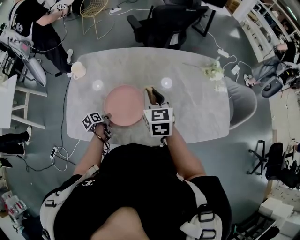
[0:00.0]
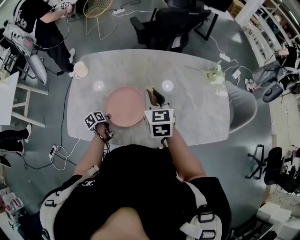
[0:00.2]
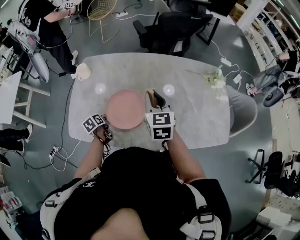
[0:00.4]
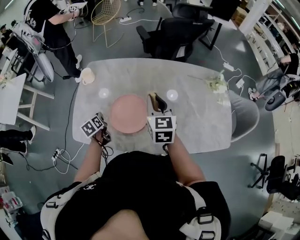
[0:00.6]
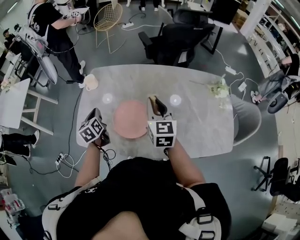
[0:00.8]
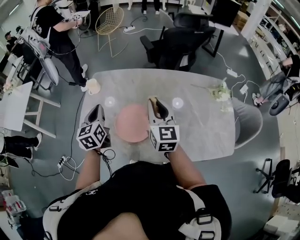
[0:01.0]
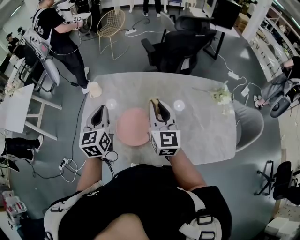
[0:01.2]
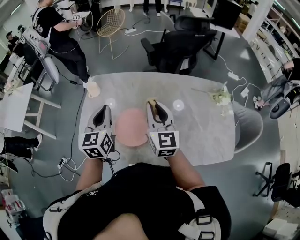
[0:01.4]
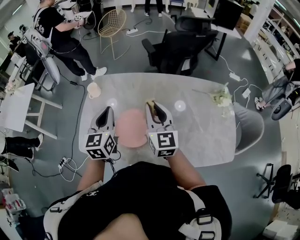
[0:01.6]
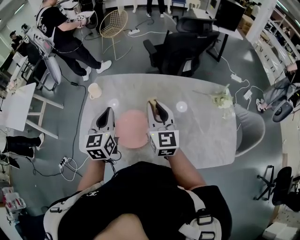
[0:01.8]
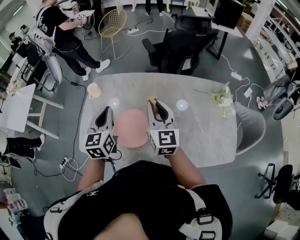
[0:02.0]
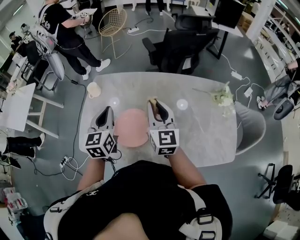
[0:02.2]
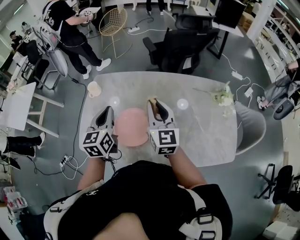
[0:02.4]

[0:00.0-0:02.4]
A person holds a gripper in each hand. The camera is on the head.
0:00.0 to 0:01.2: The left gripper heads upward, covering roughly 40 cm, and tips its fingers upward by roughly 30 degrees. Meanwhile the right gripper travels upward by about 10 cm, and swivels approximately 30 degrees.
0:01.2 to 0:02.4: The grippers move only a little.

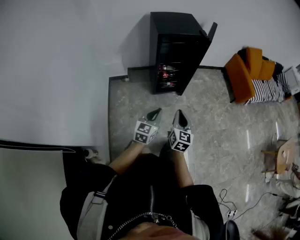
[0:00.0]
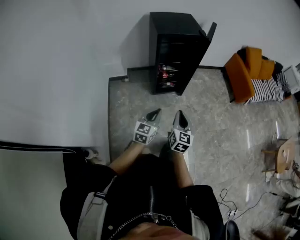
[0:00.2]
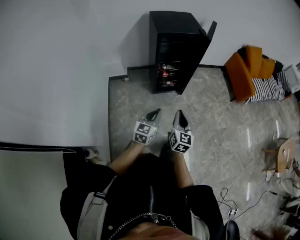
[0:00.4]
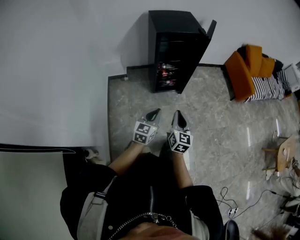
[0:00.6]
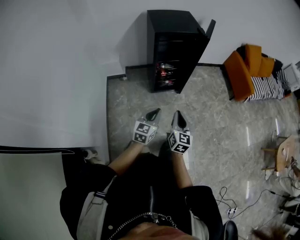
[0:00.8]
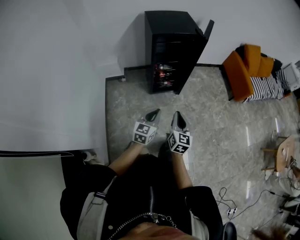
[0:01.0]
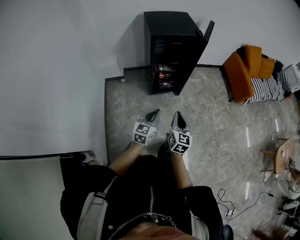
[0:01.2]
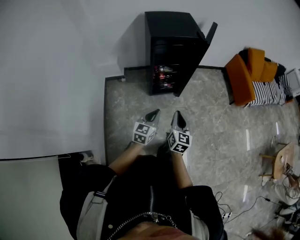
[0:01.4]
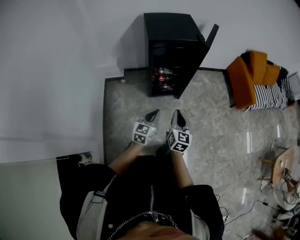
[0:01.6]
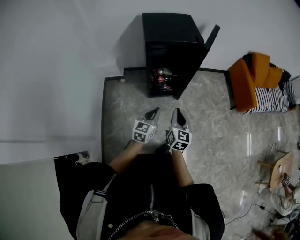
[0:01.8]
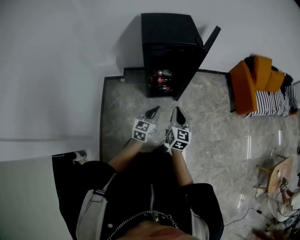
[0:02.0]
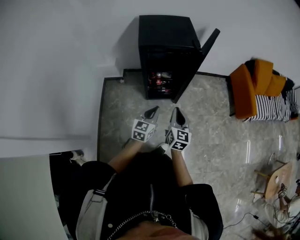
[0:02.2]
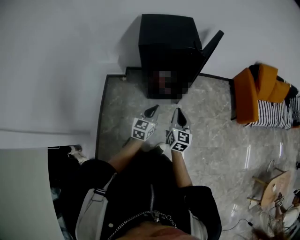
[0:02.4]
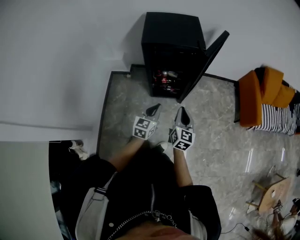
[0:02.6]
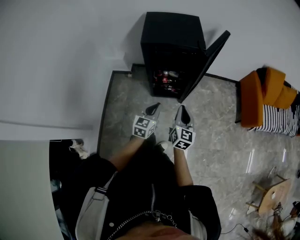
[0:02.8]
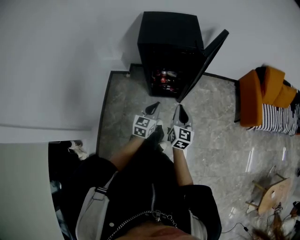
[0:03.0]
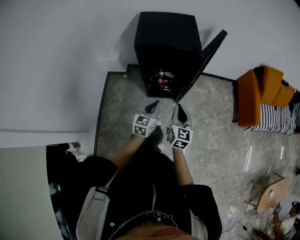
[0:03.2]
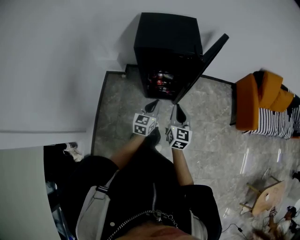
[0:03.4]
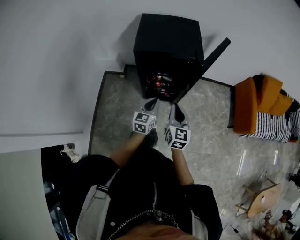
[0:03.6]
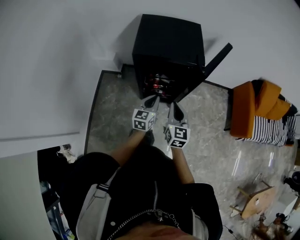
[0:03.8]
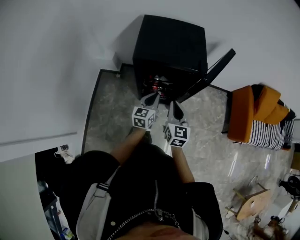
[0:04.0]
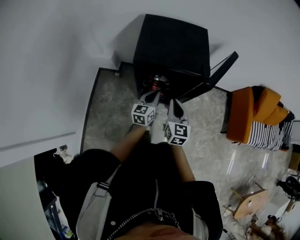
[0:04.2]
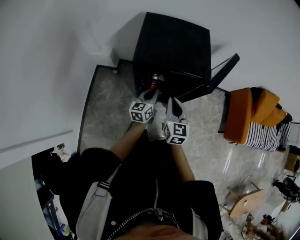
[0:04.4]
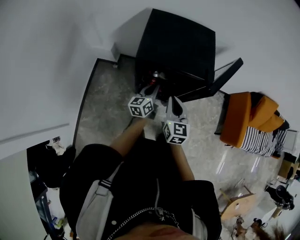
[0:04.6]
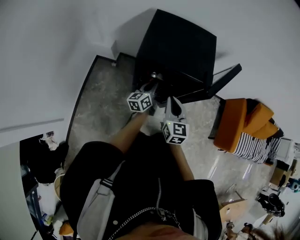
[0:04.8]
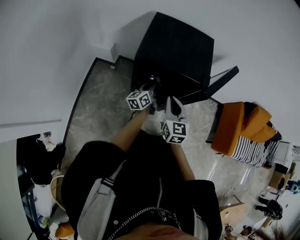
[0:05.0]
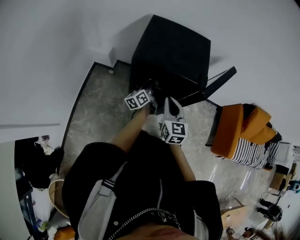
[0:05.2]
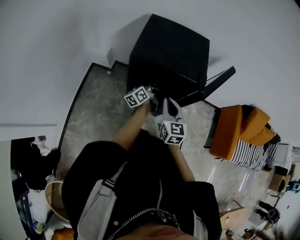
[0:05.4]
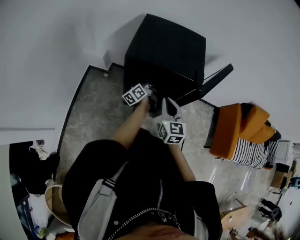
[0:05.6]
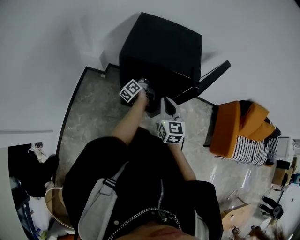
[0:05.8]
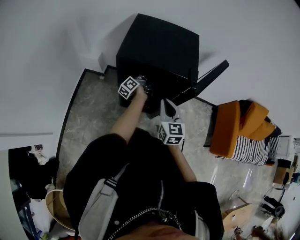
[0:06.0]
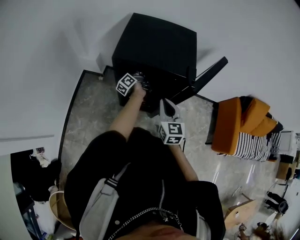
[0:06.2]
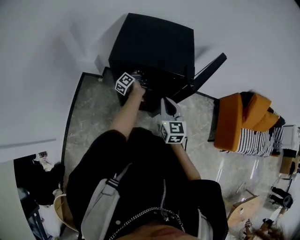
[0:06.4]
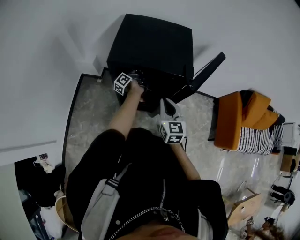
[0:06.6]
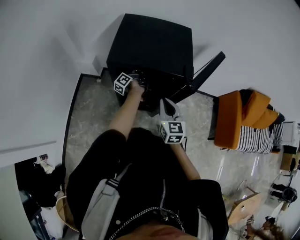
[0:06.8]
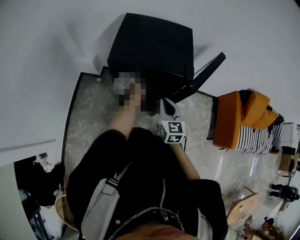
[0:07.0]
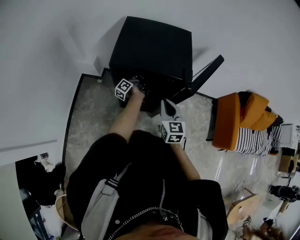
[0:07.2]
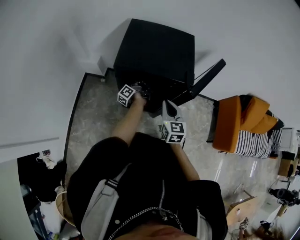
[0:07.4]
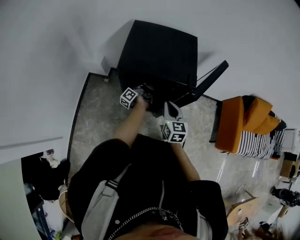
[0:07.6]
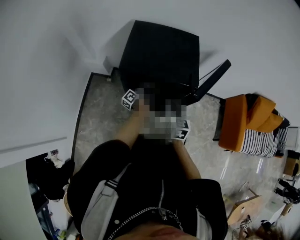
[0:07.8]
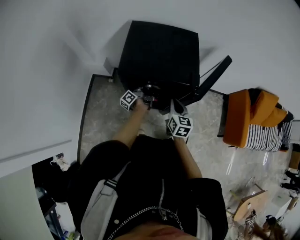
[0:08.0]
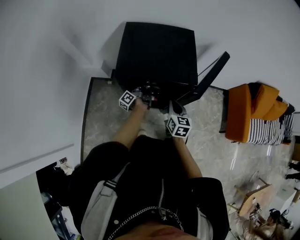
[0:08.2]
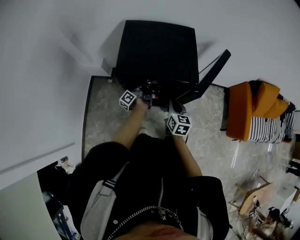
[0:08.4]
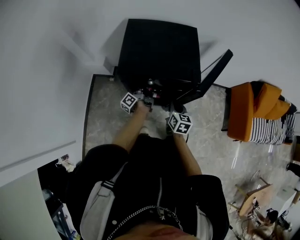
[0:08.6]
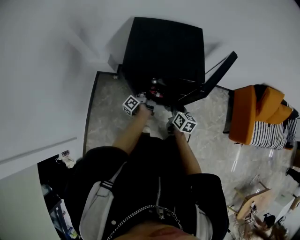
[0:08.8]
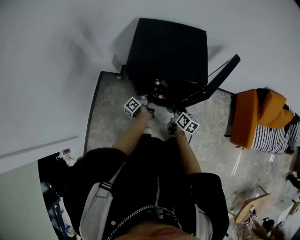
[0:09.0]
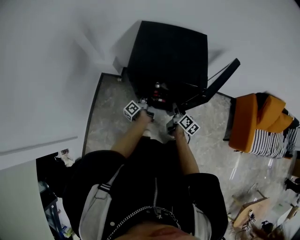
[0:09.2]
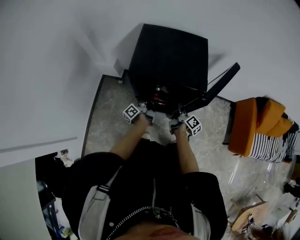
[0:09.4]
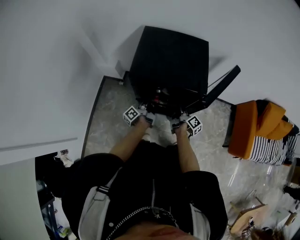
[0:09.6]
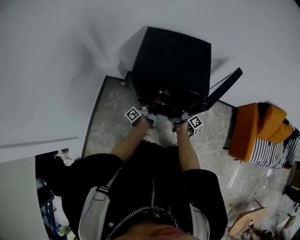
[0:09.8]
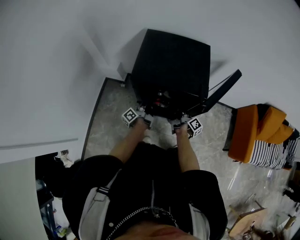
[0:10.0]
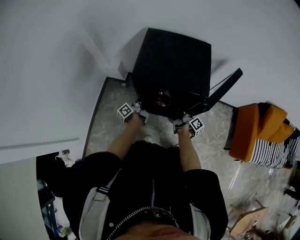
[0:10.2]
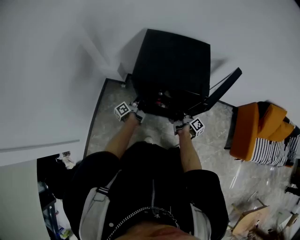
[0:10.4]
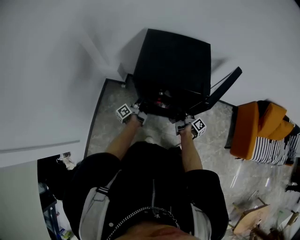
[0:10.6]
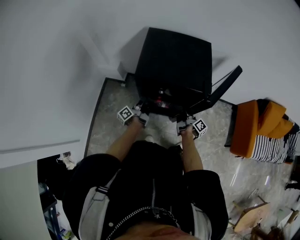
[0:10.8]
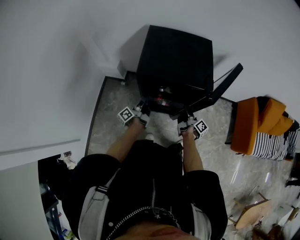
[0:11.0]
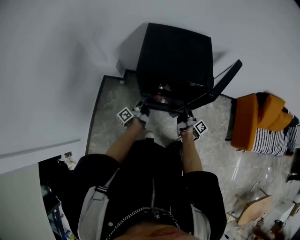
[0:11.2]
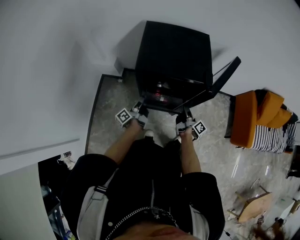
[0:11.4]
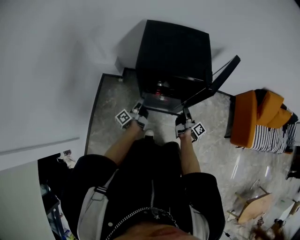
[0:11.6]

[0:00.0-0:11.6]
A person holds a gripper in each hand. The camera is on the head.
0:00.0 to 0:01.4: Both grippers move forward, some 10 cm.
0:01.4 to 0:02.8: Both grippers move forward and to the right, about 20 cm.
0:02.8 to 0:04.4: The two grippers go about 25 cm forward. The left gripper turns by approximately 30 degrees.
0:04.4 to 0:05.8: The left gripper goes about 15 cm forward and downward, and rolls counterclockwise, seen from behind, by roughly 50 degrees; the right gripper shifts by roughly 5 cm.
0:07.2 to 0:08.8: The left gripper is displaced backward by roughly 10 cm; the right gripper moves downward, about 10 cm, and swivels about 40 degrees.
0:08.8 to 0:10.2: The right gripper heads forward, downward and to the right, covering approximately 10 cm, rolls clockwise, seen from behind, by approximately 50 degrees, and opens and closes again; the left gripper moves to the left, some 5 cm.
0:10.2 to 0:11.6: Both grippers move backward, about 10 cm.

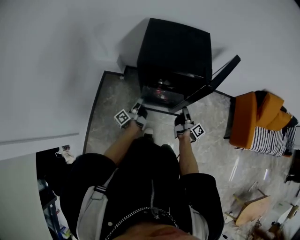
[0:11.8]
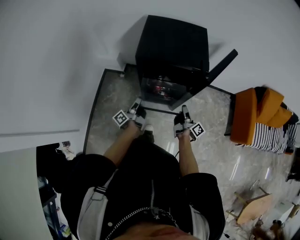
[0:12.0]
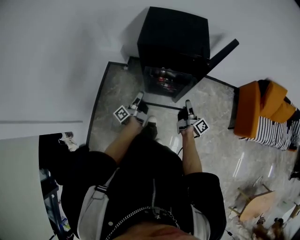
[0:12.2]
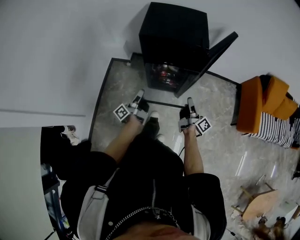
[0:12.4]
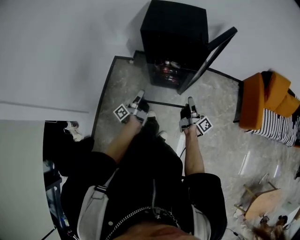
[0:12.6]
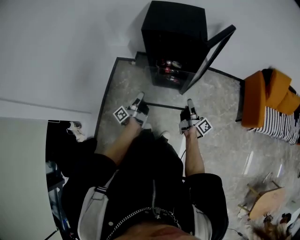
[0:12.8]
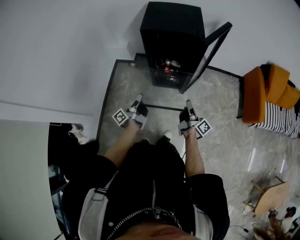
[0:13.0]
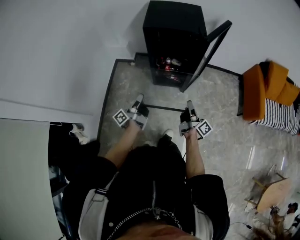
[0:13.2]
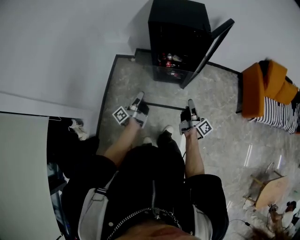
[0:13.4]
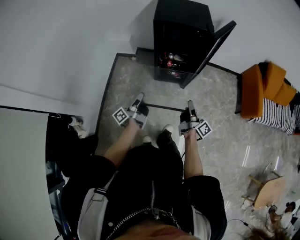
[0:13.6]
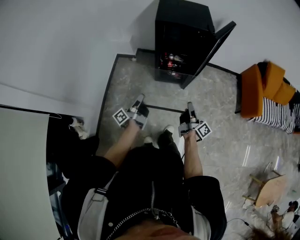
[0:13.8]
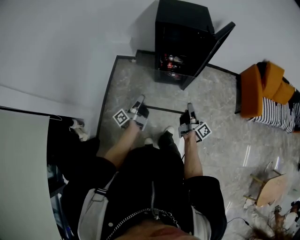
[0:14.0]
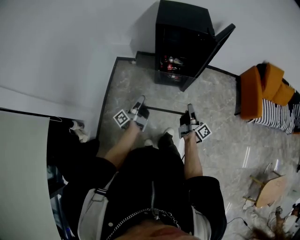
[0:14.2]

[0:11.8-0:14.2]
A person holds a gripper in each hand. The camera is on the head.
0:11.8 to 0:13.0: The two grippers go some 25 cm backward.
0:13.0 to 0:14.2: The two grippers go approximately 10 cm backward and to the left.

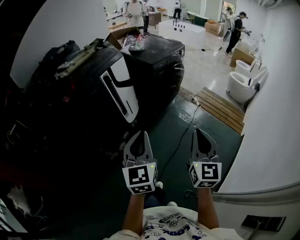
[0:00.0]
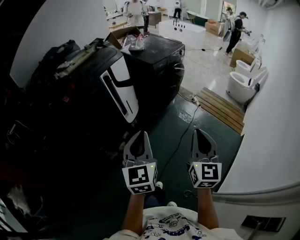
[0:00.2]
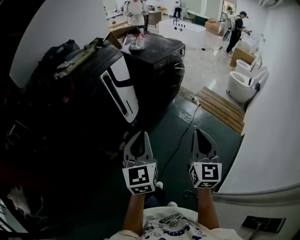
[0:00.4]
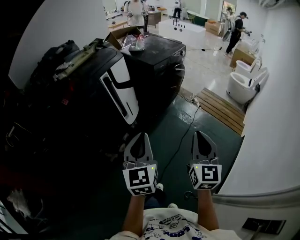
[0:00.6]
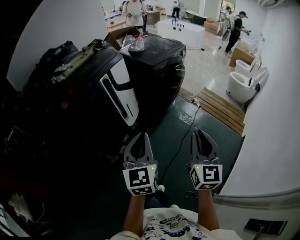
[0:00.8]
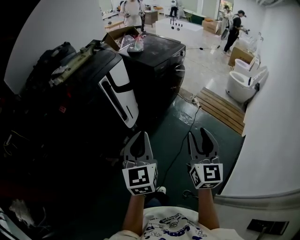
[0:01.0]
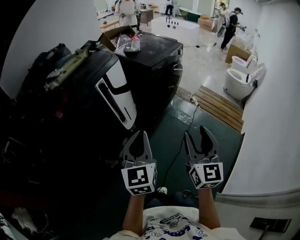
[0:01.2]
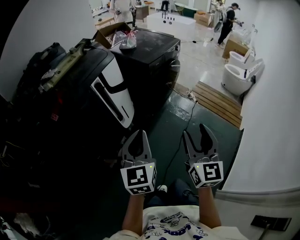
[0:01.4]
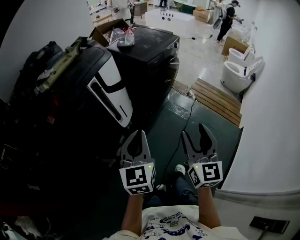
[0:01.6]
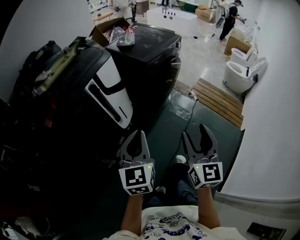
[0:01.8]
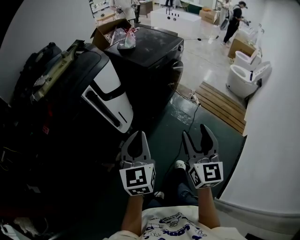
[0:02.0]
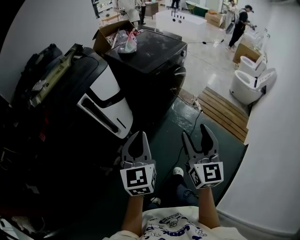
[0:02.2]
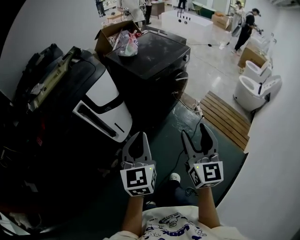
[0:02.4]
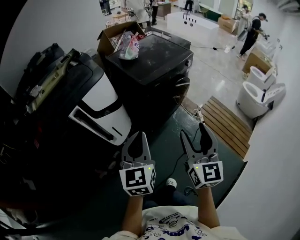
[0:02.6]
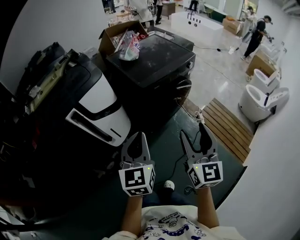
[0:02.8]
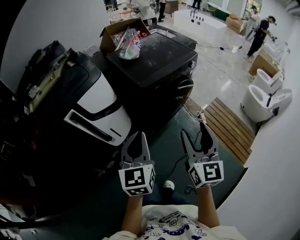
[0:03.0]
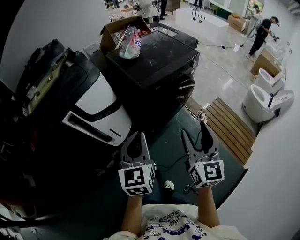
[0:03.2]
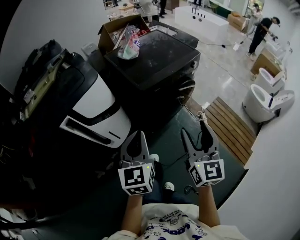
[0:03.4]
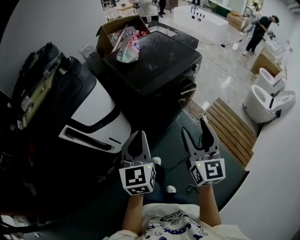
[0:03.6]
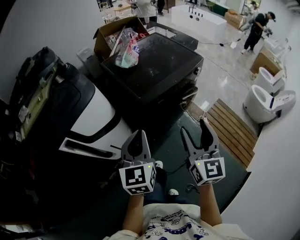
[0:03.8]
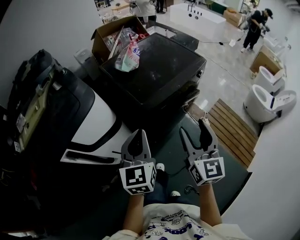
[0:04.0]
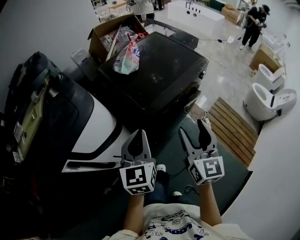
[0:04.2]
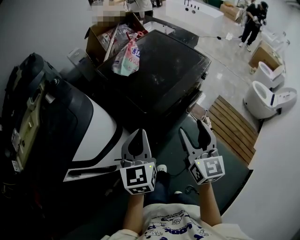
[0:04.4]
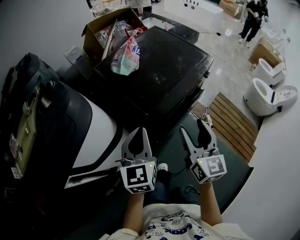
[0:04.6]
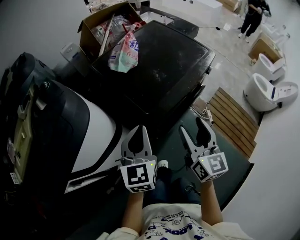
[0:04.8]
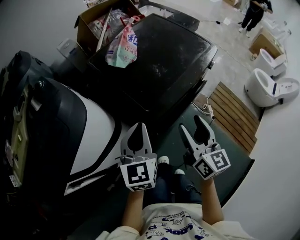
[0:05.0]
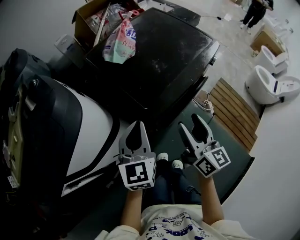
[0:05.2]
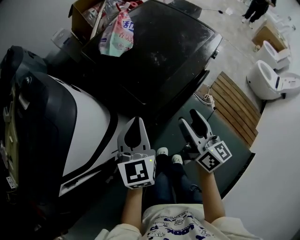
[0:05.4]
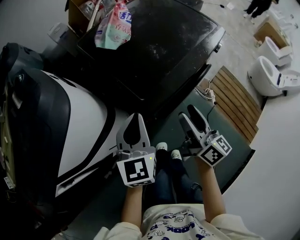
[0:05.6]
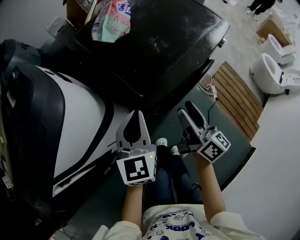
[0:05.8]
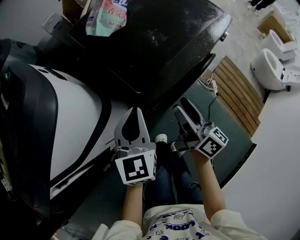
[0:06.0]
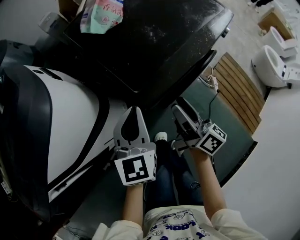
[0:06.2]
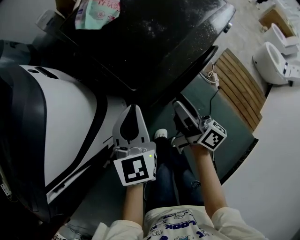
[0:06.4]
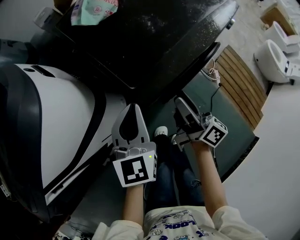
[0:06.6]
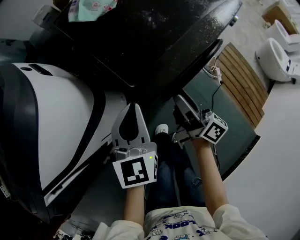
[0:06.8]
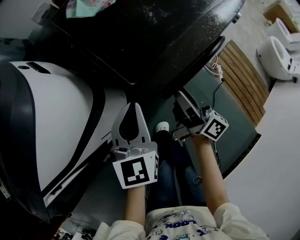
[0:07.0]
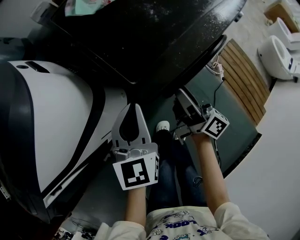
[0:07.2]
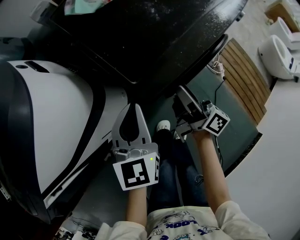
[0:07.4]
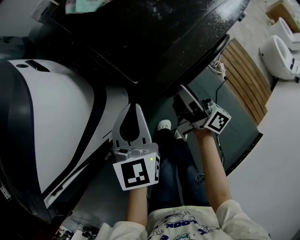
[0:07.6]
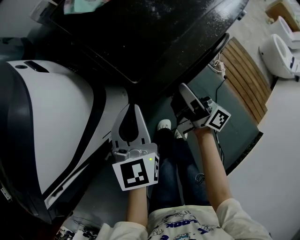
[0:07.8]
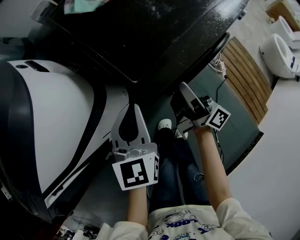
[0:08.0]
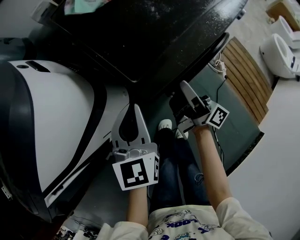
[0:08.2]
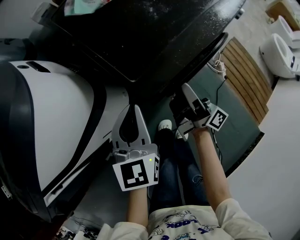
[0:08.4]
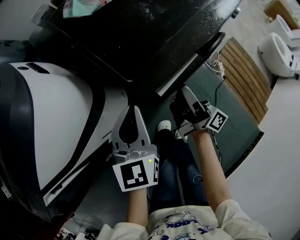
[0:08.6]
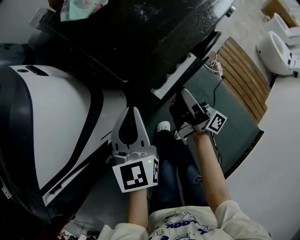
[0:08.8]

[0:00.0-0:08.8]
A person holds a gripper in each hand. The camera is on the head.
0:00.0 to 0:01.4: The left gripper shifts about 15 cm forward, while the right gripper heads forward and to the left, covering about 15 cm, and opens.
0:01.4 to 0:03.0: Both grippers are carried forward and to the right, some 40 cm.
0:03.0 to 0:04.4: Both grippers move forward, some 35 cm.
0:04.4 to 0:05.8: The grippers both shift downward and forward by roughly 20 cm. The right gripper rotates around the line of its fingers by about 40 degrees, clockwise from behind.
0:05.8 to 0:07.4: The right gripper is displaced downward and forward by roughly 15 cm, and rotates approximately 20 degrees; the left gripper is displaced downward by approximately 10 cm.
0:07.4 to 0:08.8: The grippers make only small movements.
